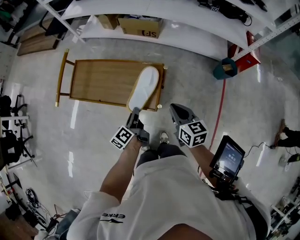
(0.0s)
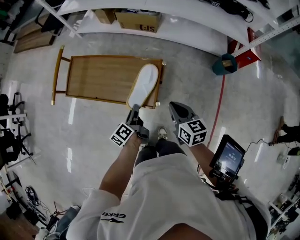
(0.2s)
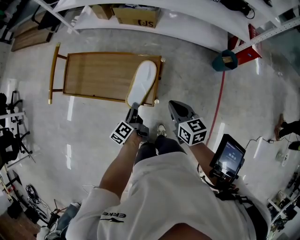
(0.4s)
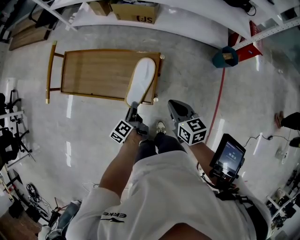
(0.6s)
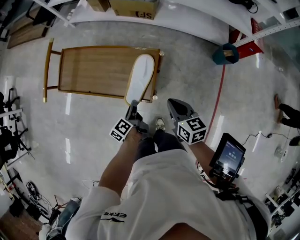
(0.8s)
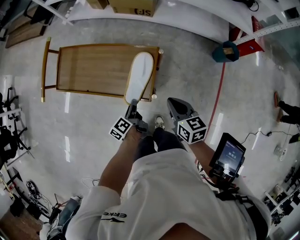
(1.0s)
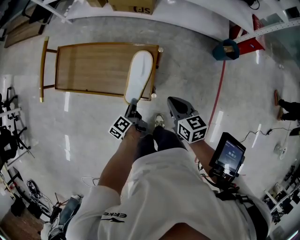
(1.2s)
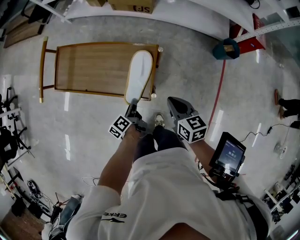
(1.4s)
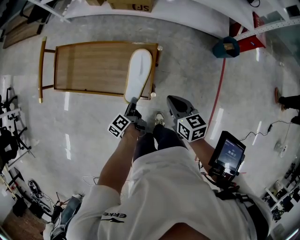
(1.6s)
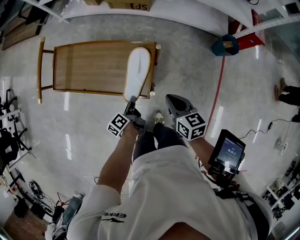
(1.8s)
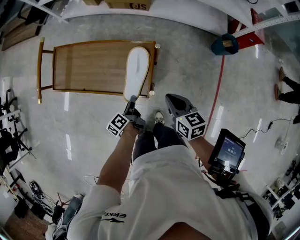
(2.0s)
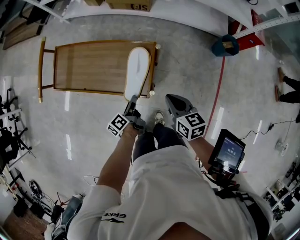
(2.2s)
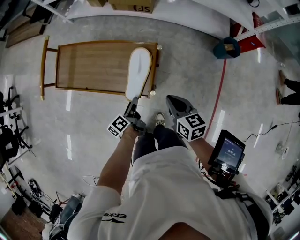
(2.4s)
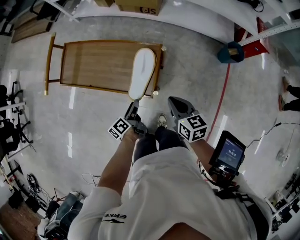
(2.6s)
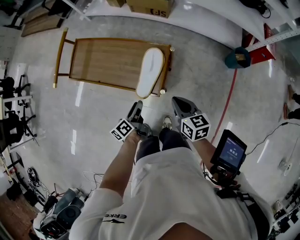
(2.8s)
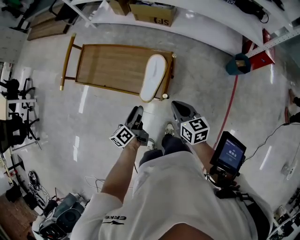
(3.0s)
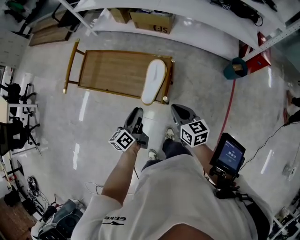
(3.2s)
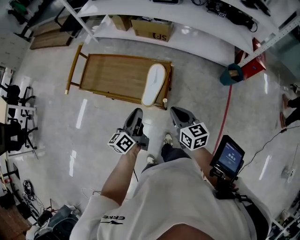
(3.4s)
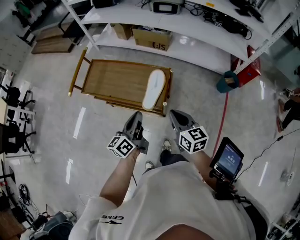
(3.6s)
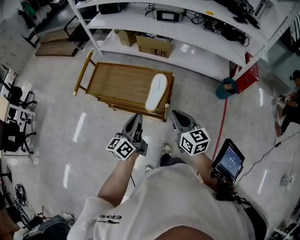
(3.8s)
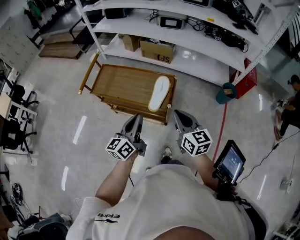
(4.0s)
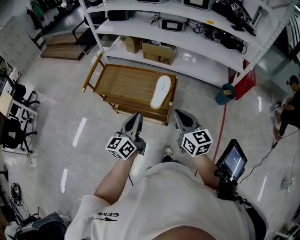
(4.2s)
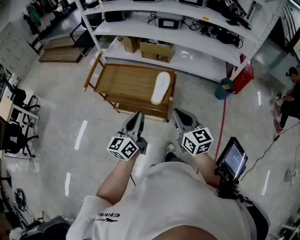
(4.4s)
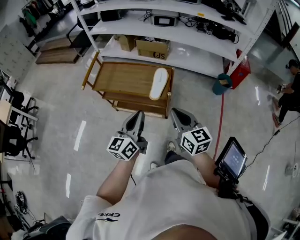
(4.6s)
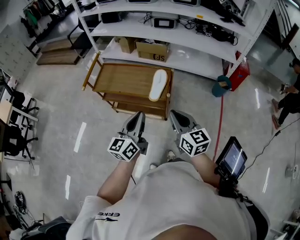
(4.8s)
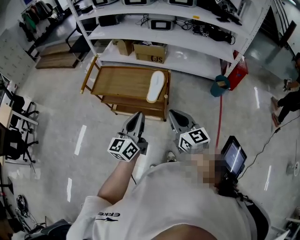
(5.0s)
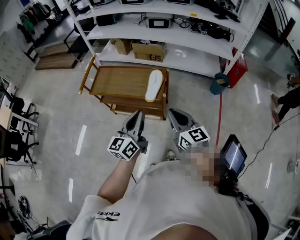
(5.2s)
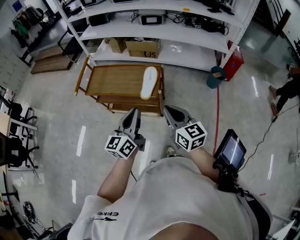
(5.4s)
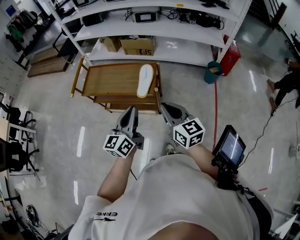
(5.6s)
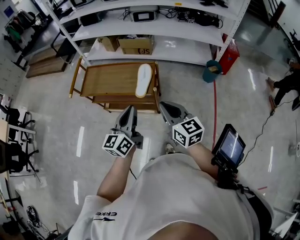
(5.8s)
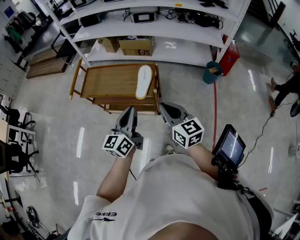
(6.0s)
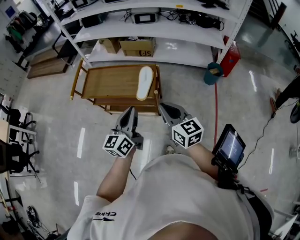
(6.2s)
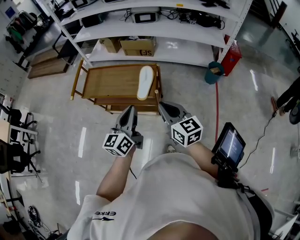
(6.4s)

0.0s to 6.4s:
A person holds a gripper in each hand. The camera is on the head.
0.0s to 1.6s: The right gripper heads downward, covering about 5 cm, while the left gripper goes roughly 10 cm downward.
1.6s to 3.2s: The left gripper goes some 15 cm upward, and rotates roughly 30 degrees; the right gripper ends up roughly 5 cm from where it was.
3.2s to 4.8s: The right gripper moves backward, upward and to the left, approximately 30 cm, and rotates roughly 20 degrees, while the left gripper shifts roughly 25 cm upward and backward, turns by about 30 degrees, and closes its fingers.
4.8s to 6.4s: The left gripper ends up about 5 cm from where it was.

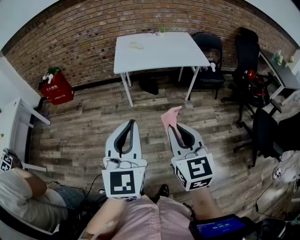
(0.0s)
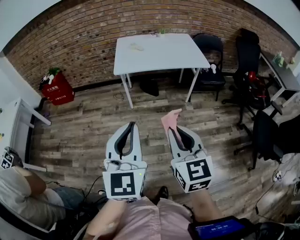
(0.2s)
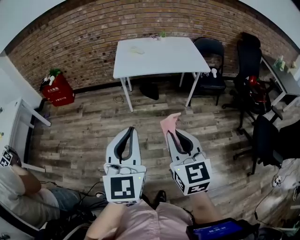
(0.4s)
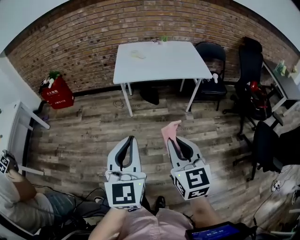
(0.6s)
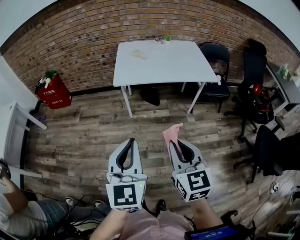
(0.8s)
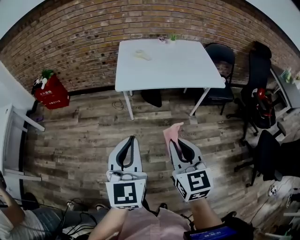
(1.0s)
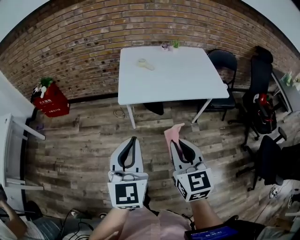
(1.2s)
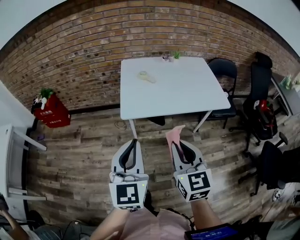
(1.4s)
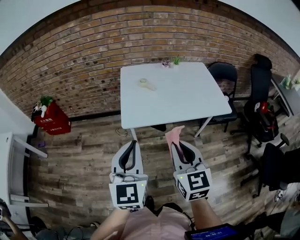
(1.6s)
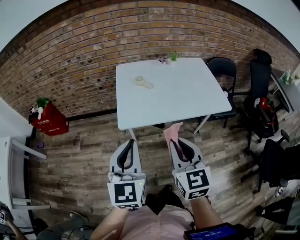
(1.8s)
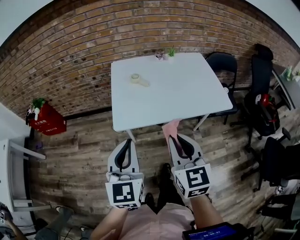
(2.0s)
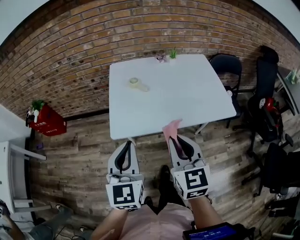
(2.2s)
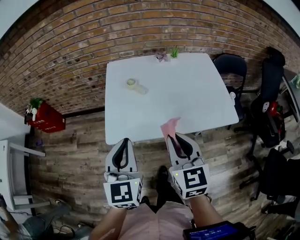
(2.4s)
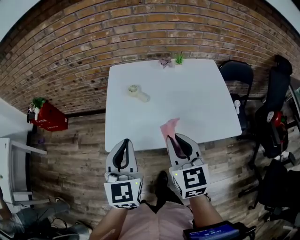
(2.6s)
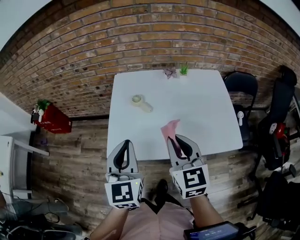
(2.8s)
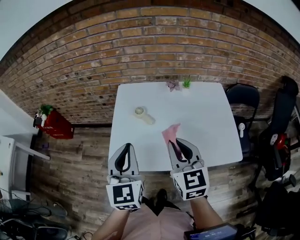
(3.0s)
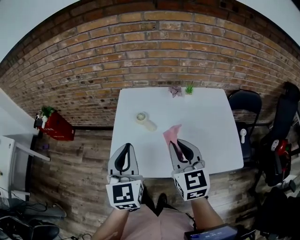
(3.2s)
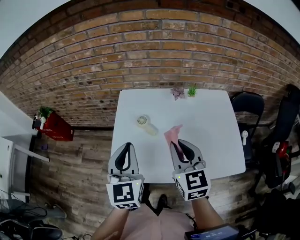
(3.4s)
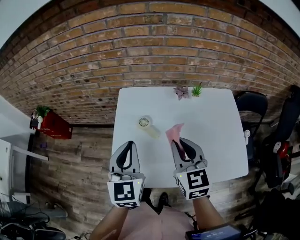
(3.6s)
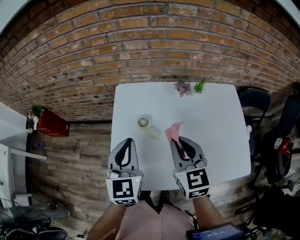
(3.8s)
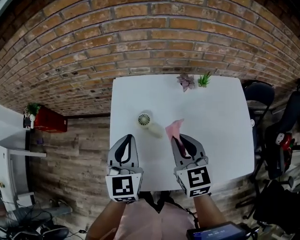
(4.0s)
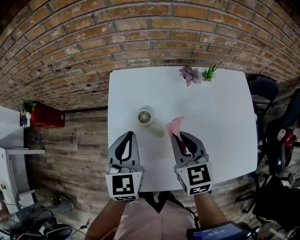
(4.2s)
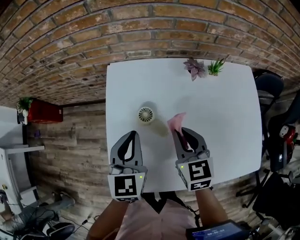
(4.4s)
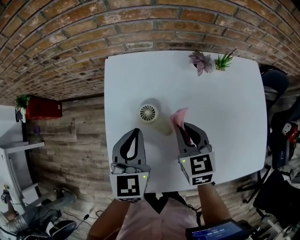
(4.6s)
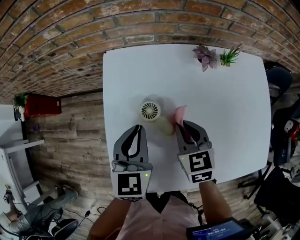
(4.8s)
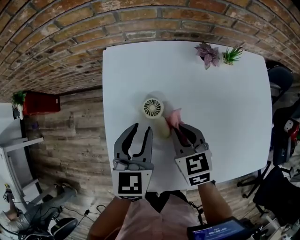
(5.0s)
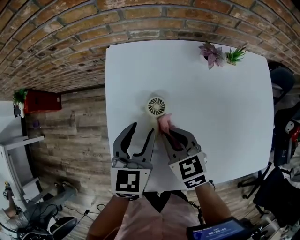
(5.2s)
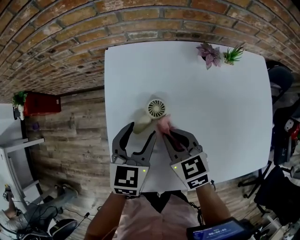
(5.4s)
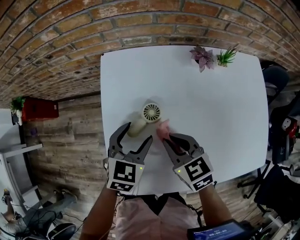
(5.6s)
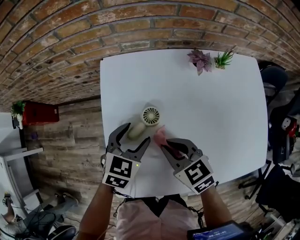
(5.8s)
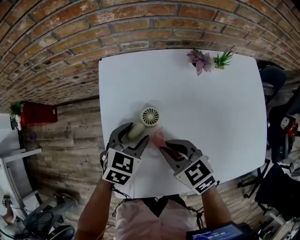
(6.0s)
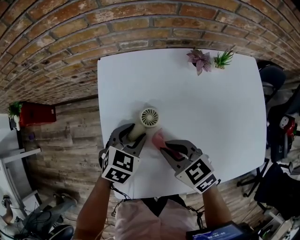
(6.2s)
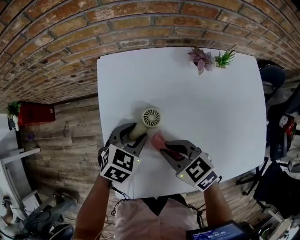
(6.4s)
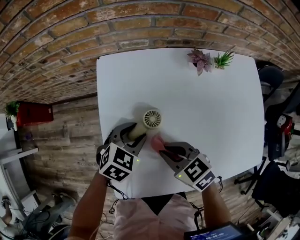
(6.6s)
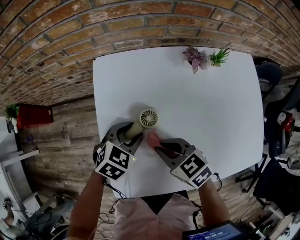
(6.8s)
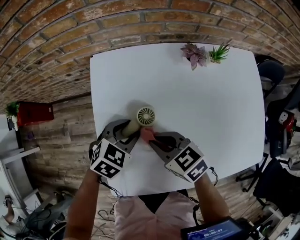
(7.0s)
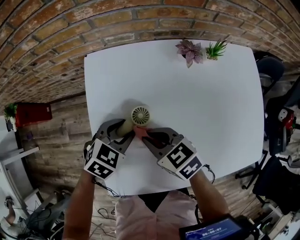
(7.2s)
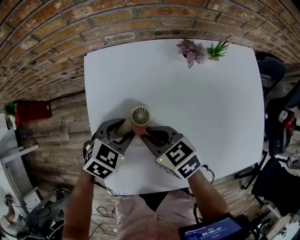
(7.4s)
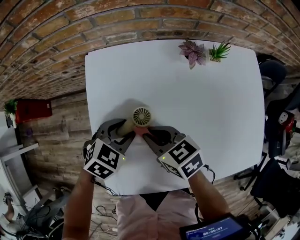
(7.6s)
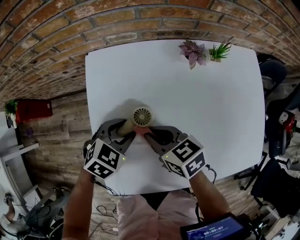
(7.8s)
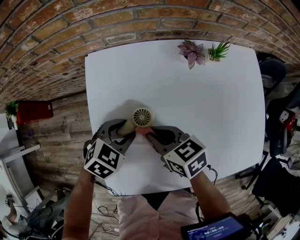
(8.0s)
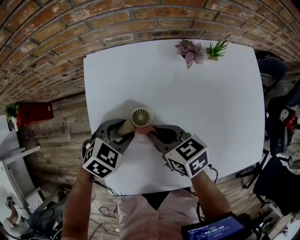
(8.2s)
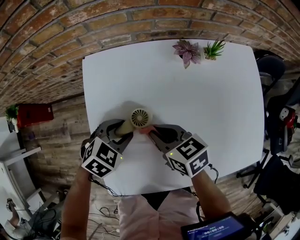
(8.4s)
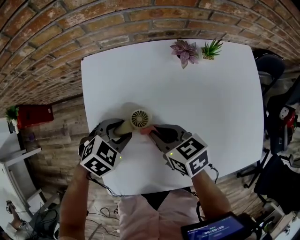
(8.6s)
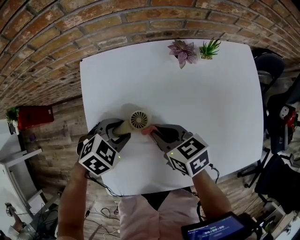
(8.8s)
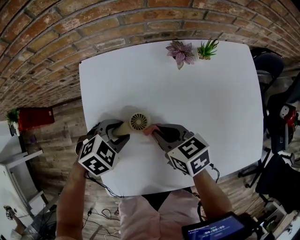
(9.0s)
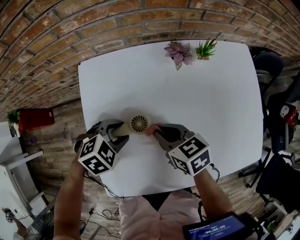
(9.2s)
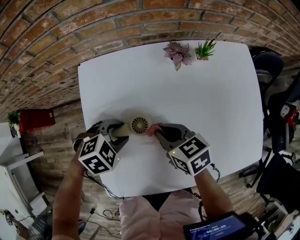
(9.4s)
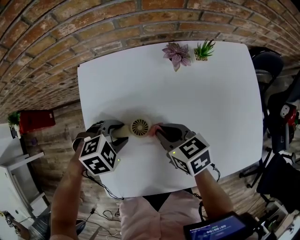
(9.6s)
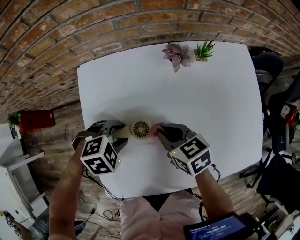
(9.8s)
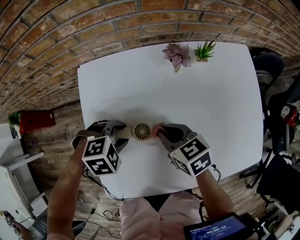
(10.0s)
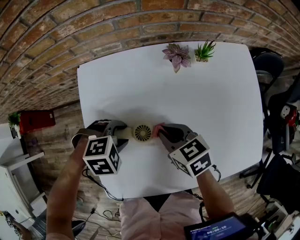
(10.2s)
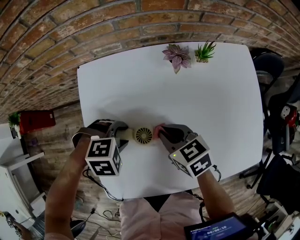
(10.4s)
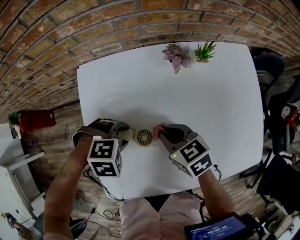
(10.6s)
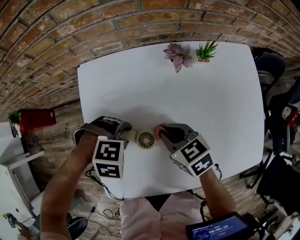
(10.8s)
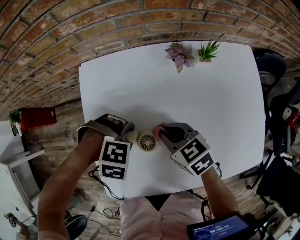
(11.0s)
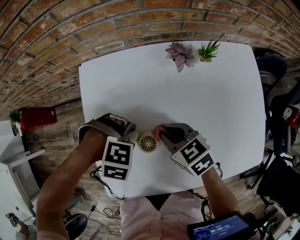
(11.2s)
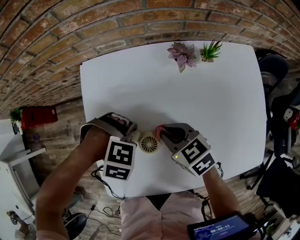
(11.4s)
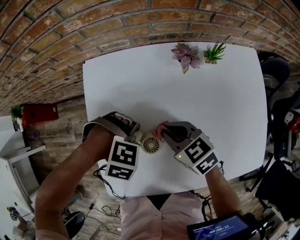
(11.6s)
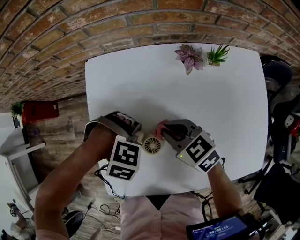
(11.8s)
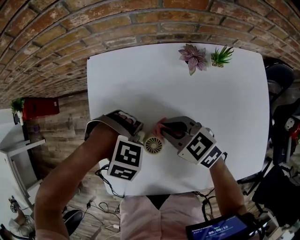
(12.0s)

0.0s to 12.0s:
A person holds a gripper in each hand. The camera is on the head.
0.0s to 1.6s: Both grippers move forward, about 35 cm.
1.6s to 3.0s: The grippers both shift forward by about 25 cm.
3.0s to 4.4s: Both grippers move forward and downward, roughly 25 cm.
4.4s to 6.0s: The left gripper moves downward, about 15 cm, turns by approximately 40 degrees, and opens up. The right gripper is displaced to the left and downward by about 10 cm, and rotates roughly 30 degrees.
6.0s to 7.6s: The grippers make only small movements.
7.6s to 9.0s: The right gripper travels to the right by approximately 5 cm.
9.0s to 10.4s: The left gripper rotates some 30 degrees.
10.4s to 12.0s: The right gripper turns by some 30 degrees. The left gripper turns by roughly 30 degrees.

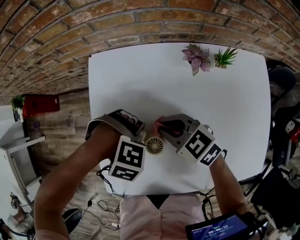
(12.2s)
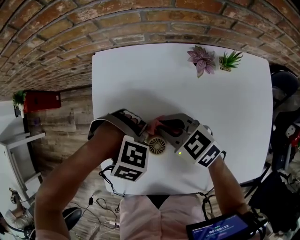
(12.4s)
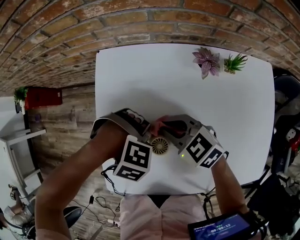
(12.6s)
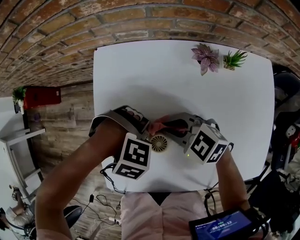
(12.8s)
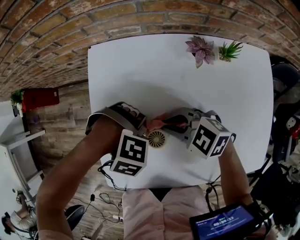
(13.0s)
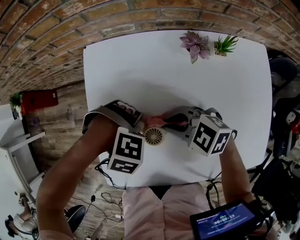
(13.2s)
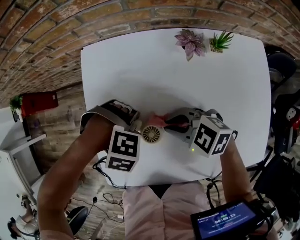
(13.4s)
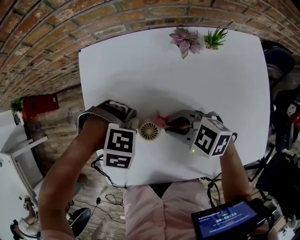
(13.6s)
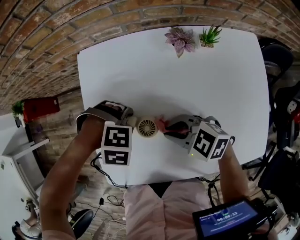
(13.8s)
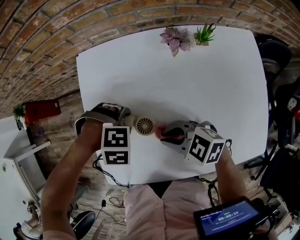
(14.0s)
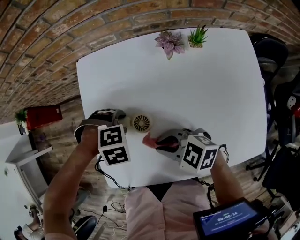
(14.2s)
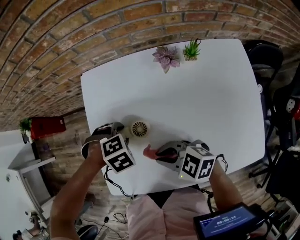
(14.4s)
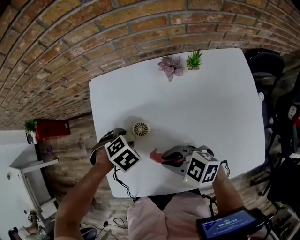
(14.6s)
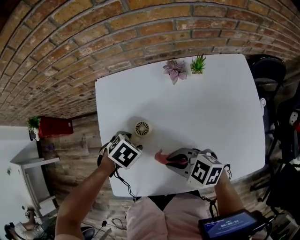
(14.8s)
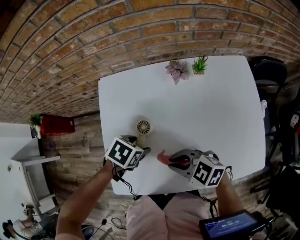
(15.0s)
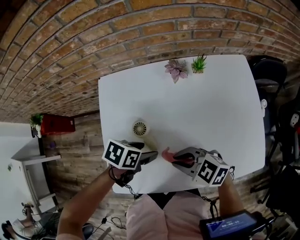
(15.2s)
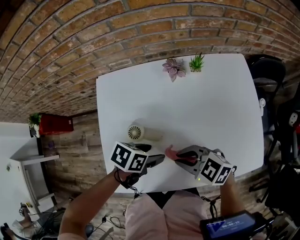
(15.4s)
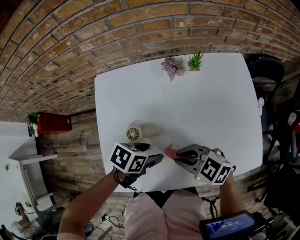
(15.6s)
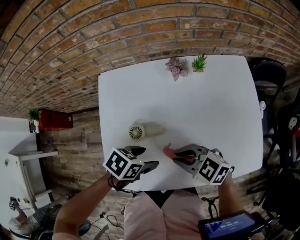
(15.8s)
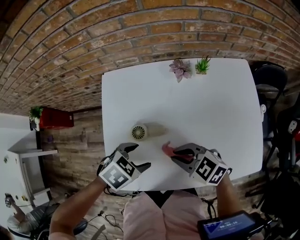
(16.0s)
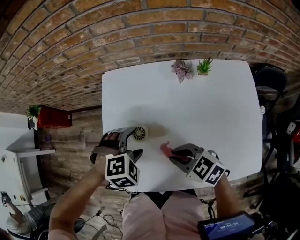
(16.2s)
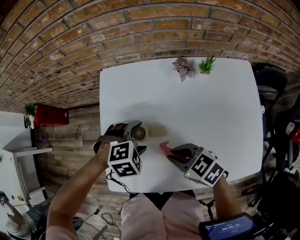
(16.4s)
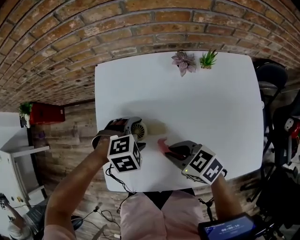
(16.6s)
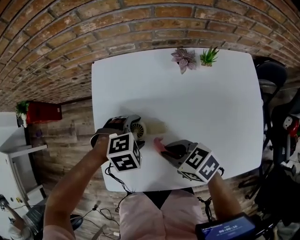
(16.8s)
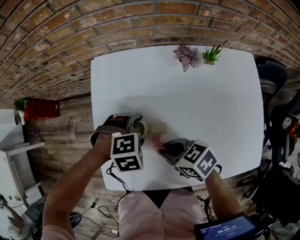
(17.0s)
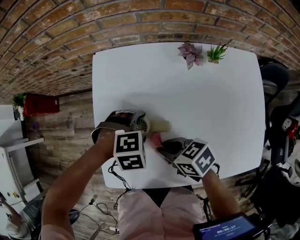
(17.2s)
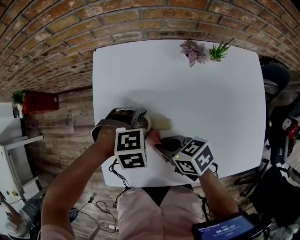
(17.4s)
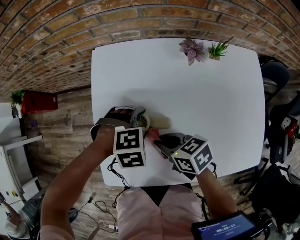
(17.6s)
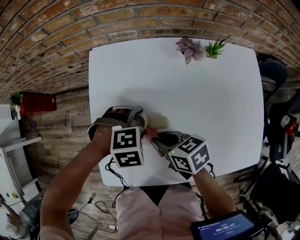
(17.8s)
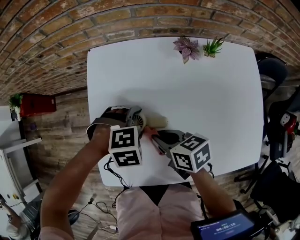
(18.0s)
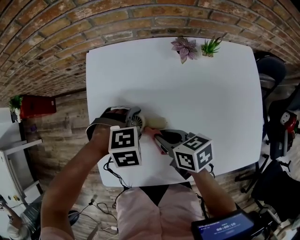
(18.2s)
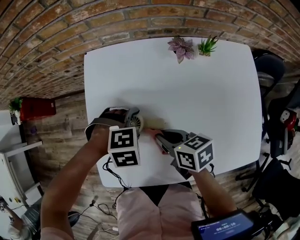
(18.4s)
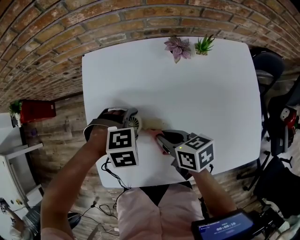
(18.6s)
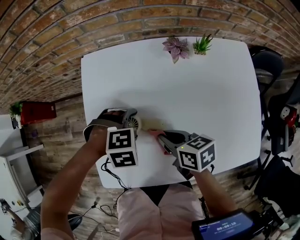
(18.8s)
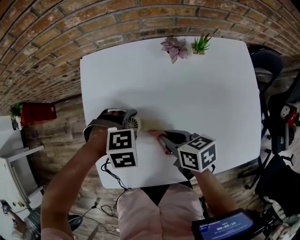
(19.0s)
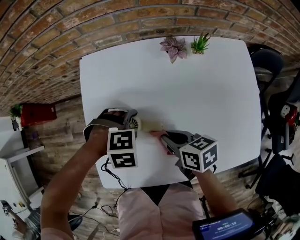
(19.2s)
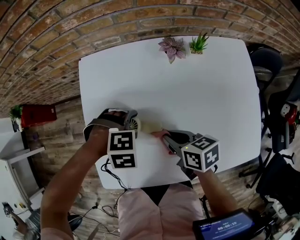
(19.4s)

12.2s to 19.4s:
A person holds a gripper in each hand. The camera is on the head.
12.2s to 13.6s: The right gripper shifts by approximately 5 cm.
13.6s to 15.0s: The left gripper twists about 80 degrees counterclockwise, seen from behind. The right gripper shifts by about 10 cm.
15.0s to 16.6s: The left gripper rolls clockwise, seen from behind, by about 50 degrees. Meanwhile the right gripper rotates some 20 degrees.
16.6s to 18.0s: The right gripper changes place by roughly 5 cm, and turns by approximately 30 degrees.
18.0s to 19.4s: The right gripper moves about 5 cm.
